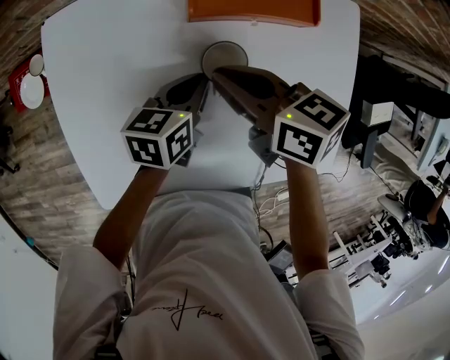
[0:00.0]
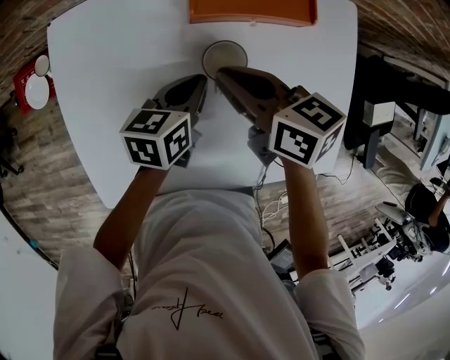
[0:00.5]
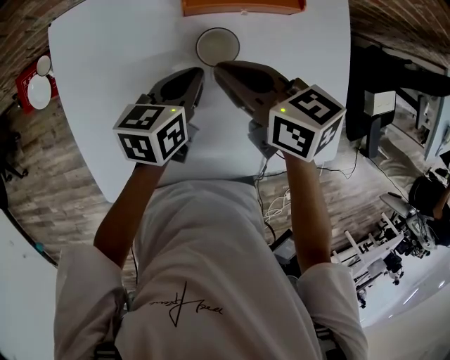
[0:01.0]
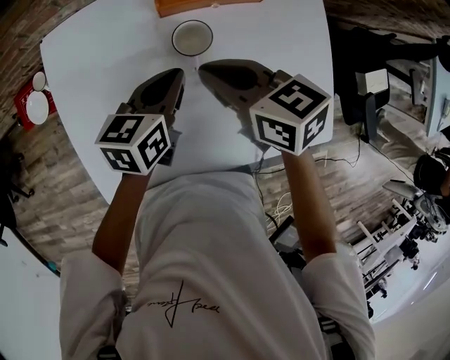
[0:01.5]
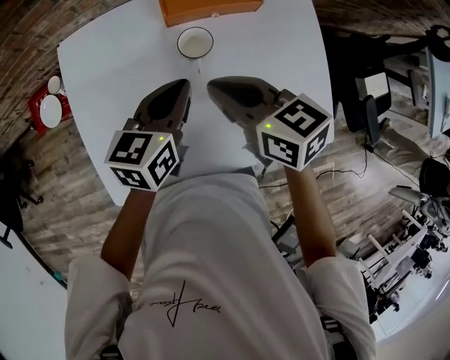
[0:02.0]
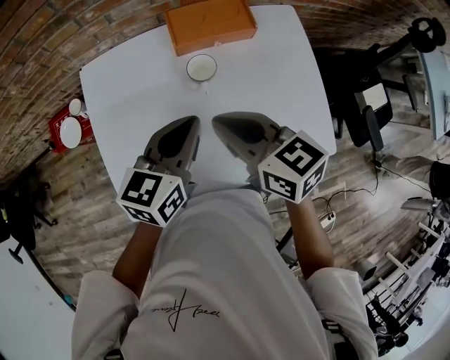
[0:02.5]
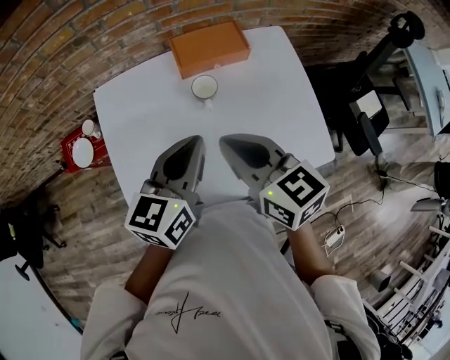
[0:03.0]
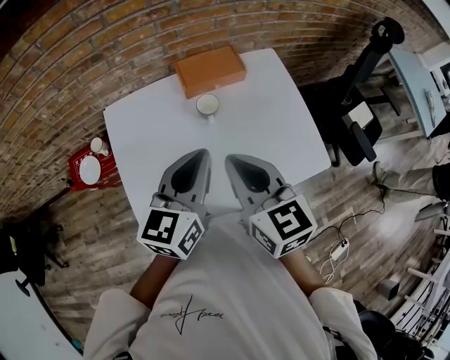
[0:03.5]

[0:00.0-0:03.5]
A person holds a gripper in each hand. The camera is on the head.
0:00.0 to 0:02.0: The right gripper goes about 10 cm backward and upward. Meanwhile the left gripper moves upward and backward, roughly 15 cm.
0:02.0 to 0:03.5: The two grippers go approximately 15 cm upward and backward. The right gripper rotates approximately 30 degrees.

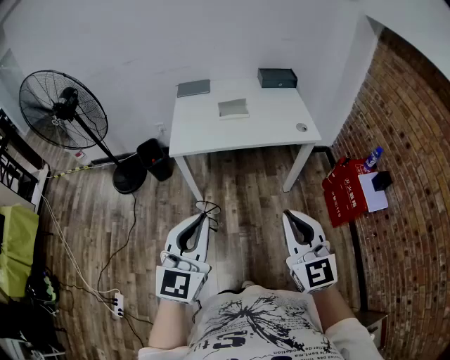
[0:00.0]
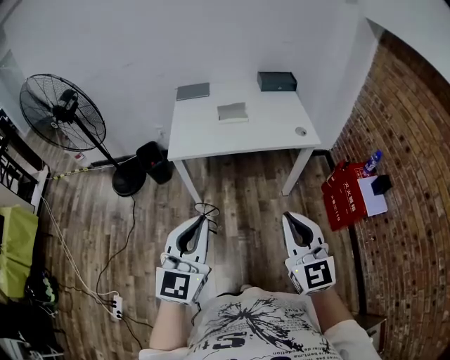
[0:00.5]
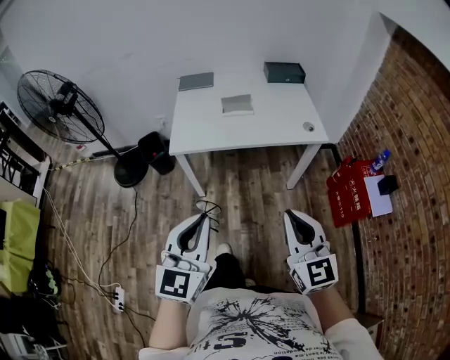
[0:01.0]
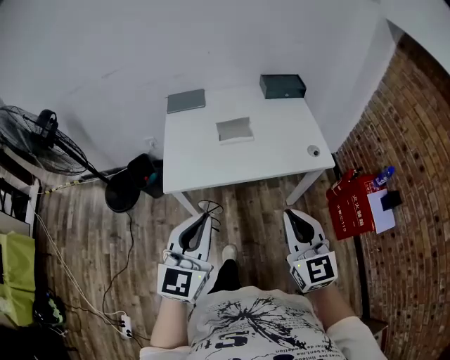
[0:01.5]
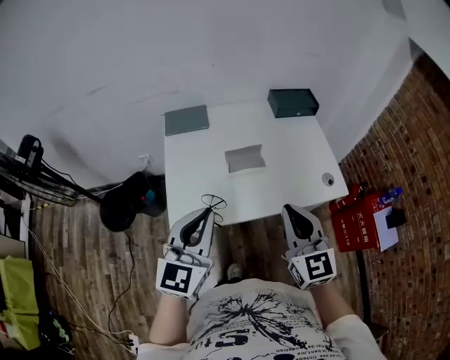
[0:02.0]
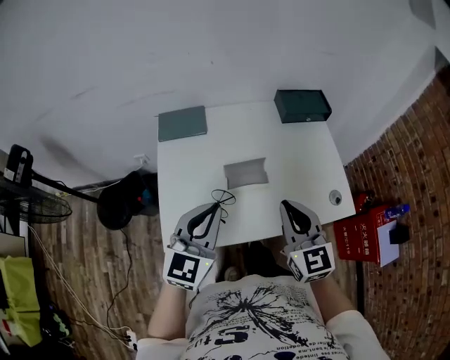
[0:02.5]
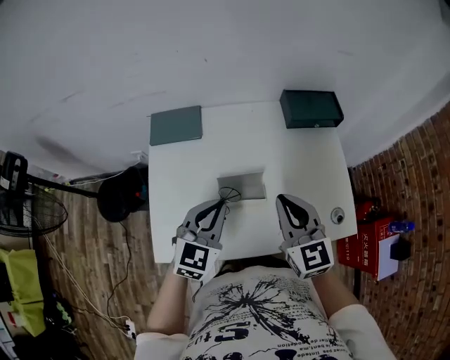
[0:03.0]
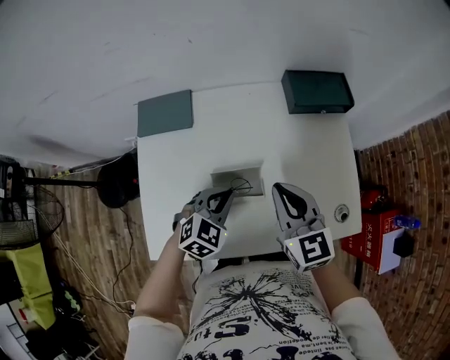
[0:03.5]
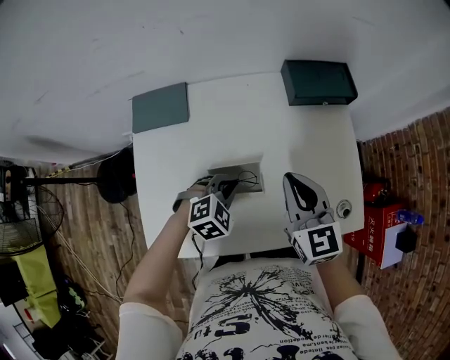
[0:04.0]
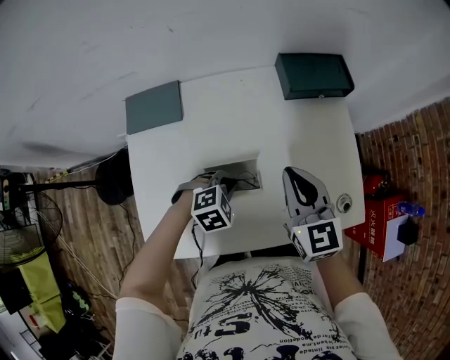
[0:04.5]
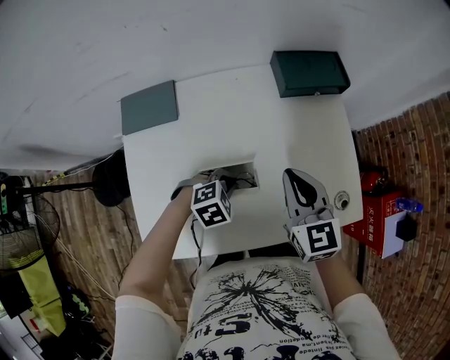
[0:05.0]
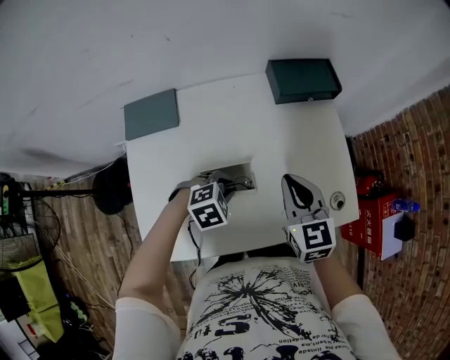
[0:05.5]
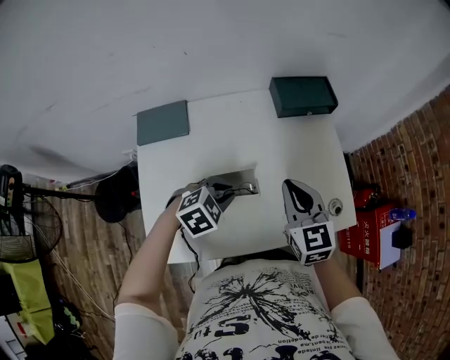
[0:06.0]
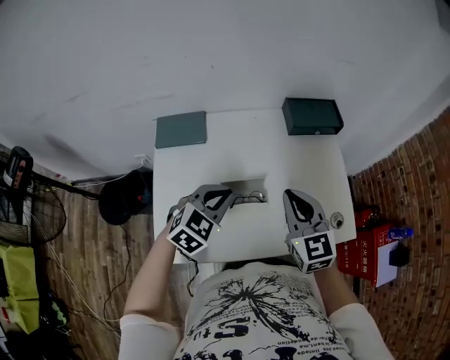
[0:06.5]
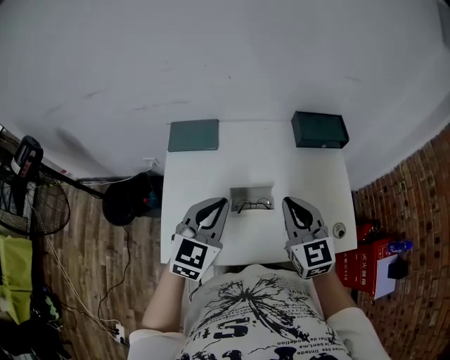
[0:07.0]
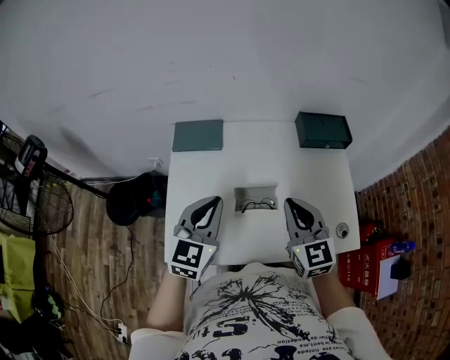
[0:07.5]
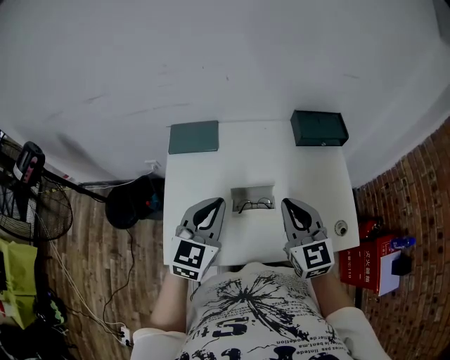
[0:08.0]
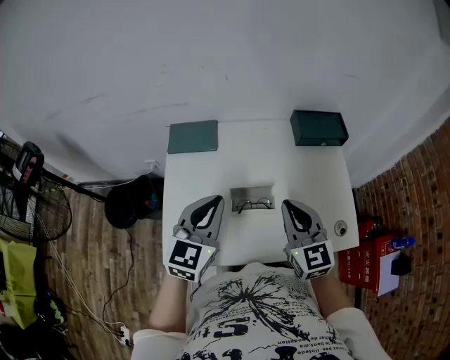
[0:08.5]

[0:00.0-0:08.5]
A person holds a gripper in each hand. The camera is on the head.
0:00.0 to 0:02.0: Both grippers are carried forward, approximately 40 cm.
0:02.0 to 0:04.0: The left gripper goes some 40 cm forward and downward, and points its fingers approximately 50 degrees further downward. Meanwhile the right gripper heads forward, covering about 30 cm.
0:04.0 to 0:06.5: The left gripper is displaced upward by some 15 cm, and turns by approximately 20 degrees. The right gripper travels backward and upward by some 10 cm.
0:06.5 to 0:08.5: The left gripper is displaced upward and to the left by approximately 10 cm, and rotates approximately 30 degrees.

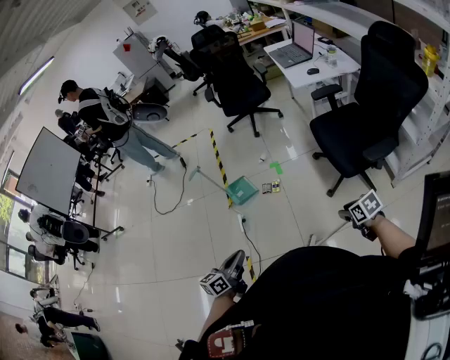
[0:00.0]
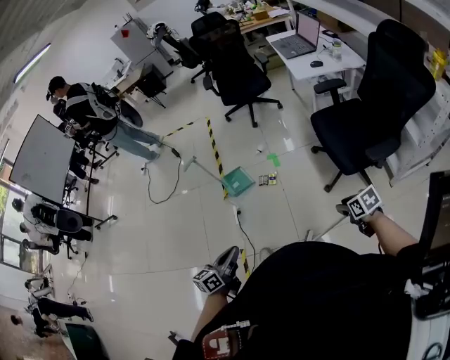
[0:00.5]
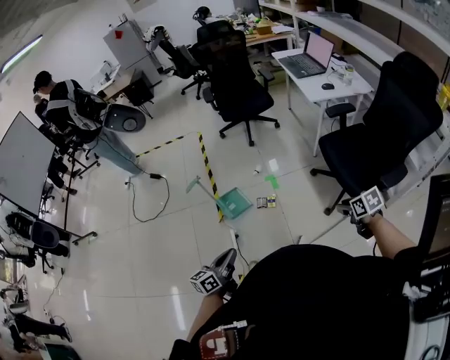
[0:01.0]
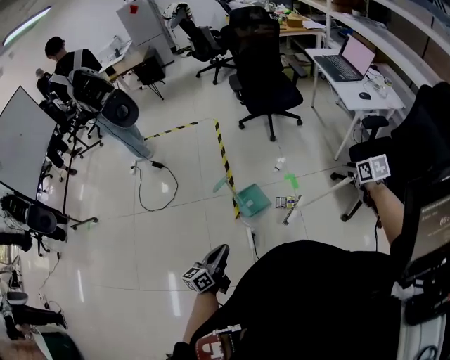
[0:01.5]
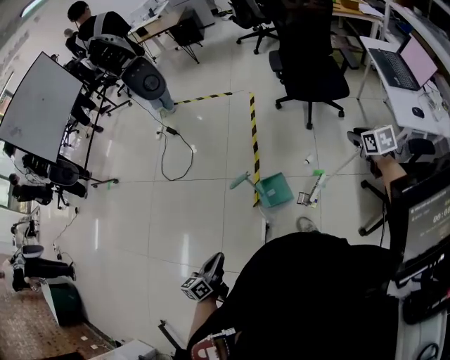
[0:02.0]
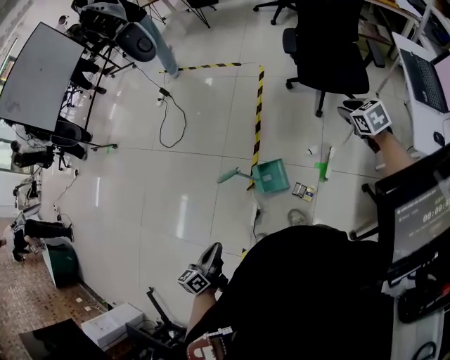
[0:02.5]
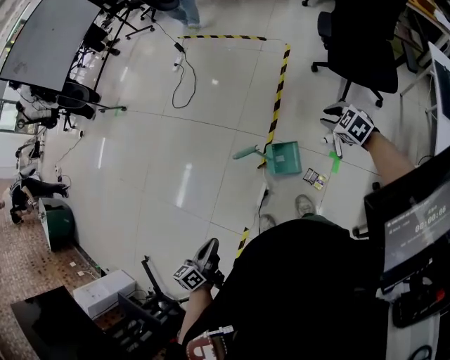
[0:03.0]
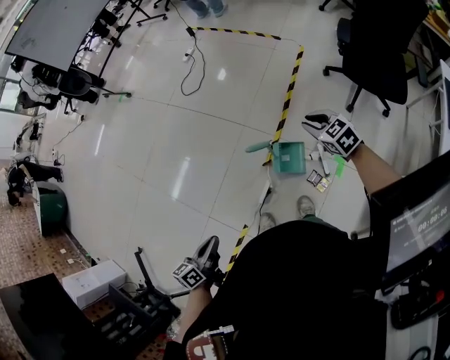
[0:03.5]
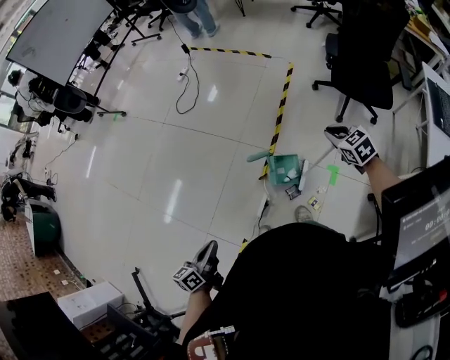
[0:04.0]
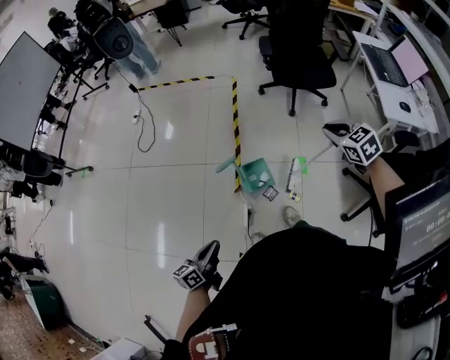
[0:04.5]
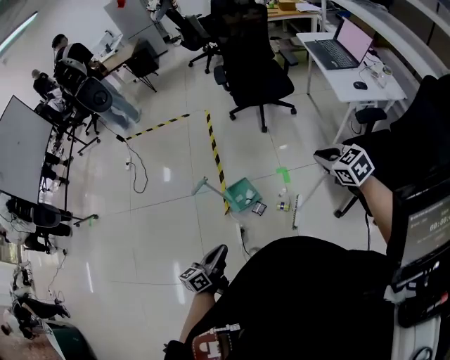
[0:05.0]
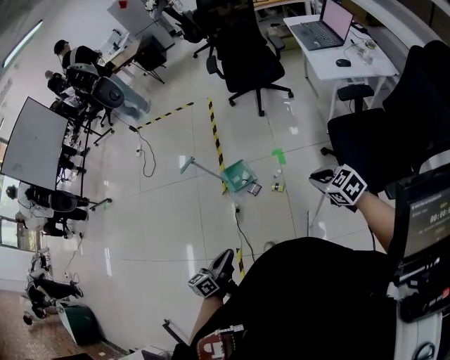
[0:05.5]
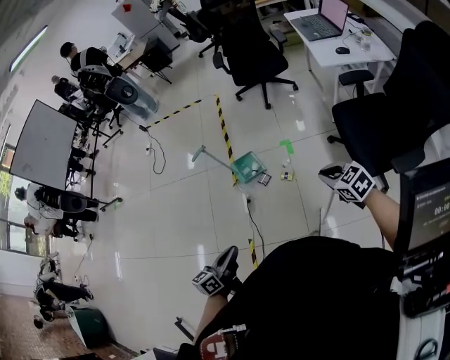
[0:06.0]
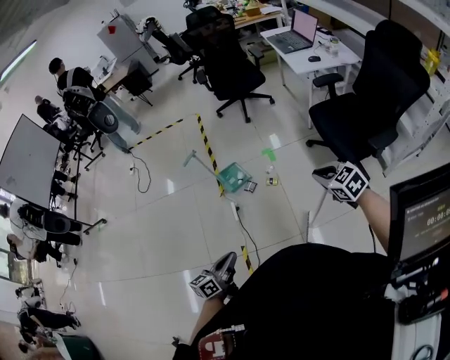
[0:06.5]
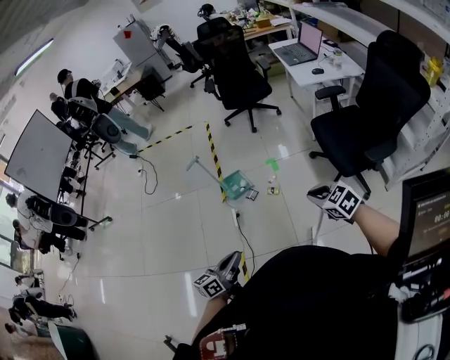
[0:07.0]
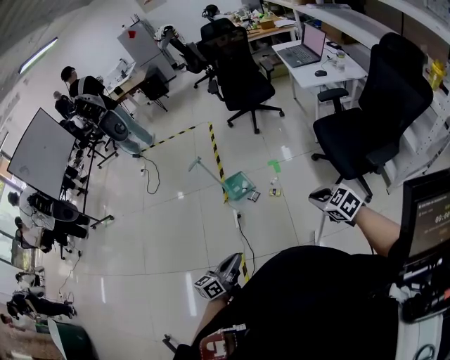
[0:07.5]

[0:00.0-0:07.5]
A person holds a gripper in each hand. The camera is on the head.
0:00.0 to 0:02.0: Both grippers are carried forward and to the left, approximately 60 cm. The left gripper rotates approximately 20 degrees.
0:02.0 to 0:04.0: The right gripper shifts by about 25 cm, swivels approximately 40 degrees, and closes up.
0:04.0 to 0:05.5: The right gripper moves about 60 cm, and changes its angle by some 20 degrees. The left gripper ends up approximately 35 cm from where it was, and turns by some 30 degrees.
0:05.5 to 0:07.5: The two grippers go approximately 20 cm backward.

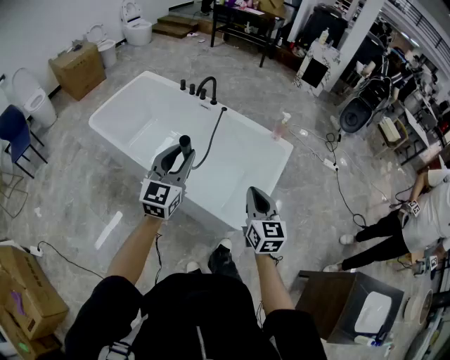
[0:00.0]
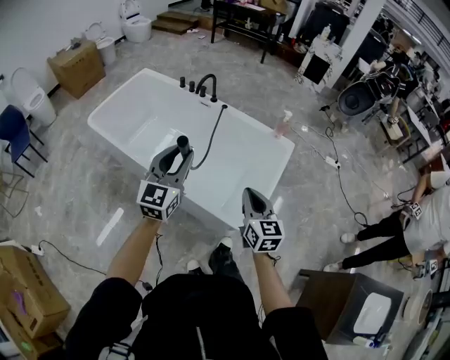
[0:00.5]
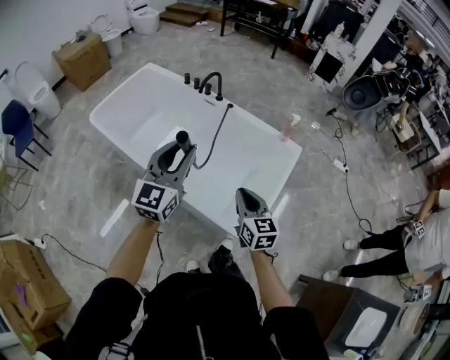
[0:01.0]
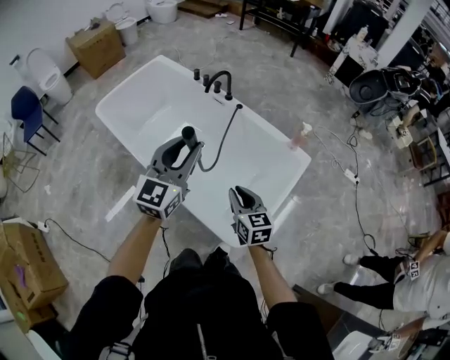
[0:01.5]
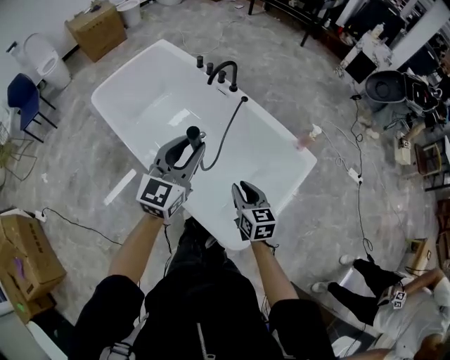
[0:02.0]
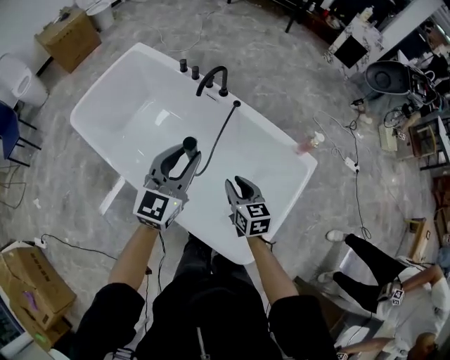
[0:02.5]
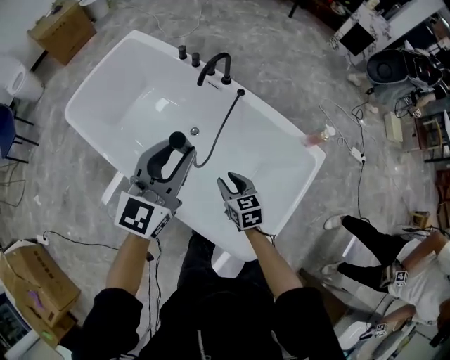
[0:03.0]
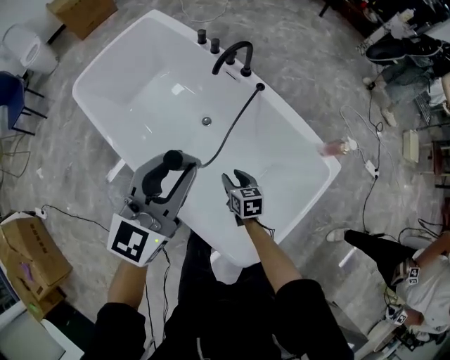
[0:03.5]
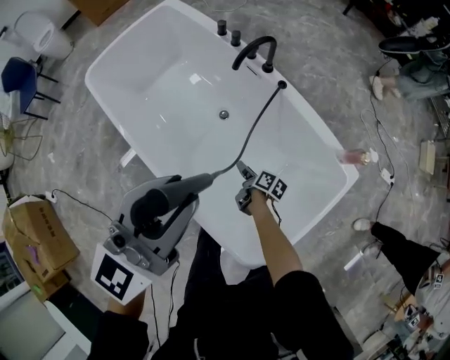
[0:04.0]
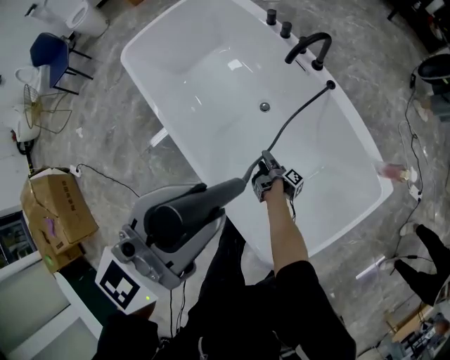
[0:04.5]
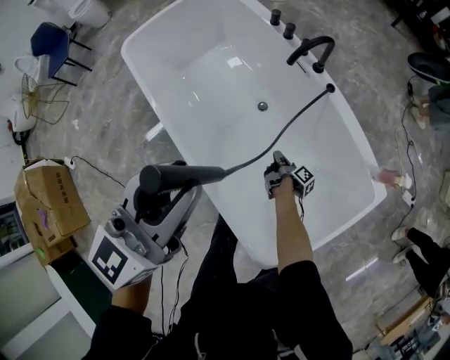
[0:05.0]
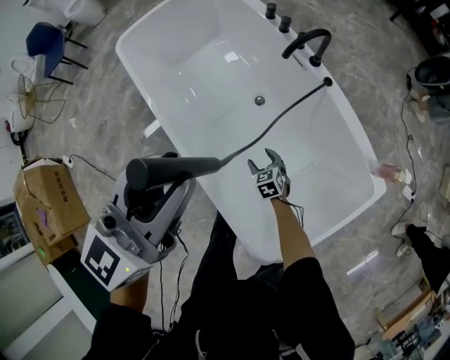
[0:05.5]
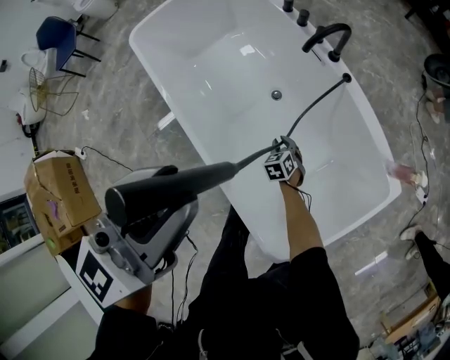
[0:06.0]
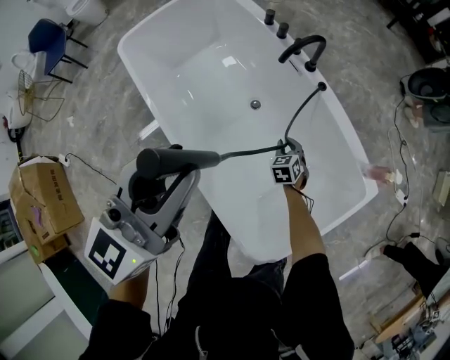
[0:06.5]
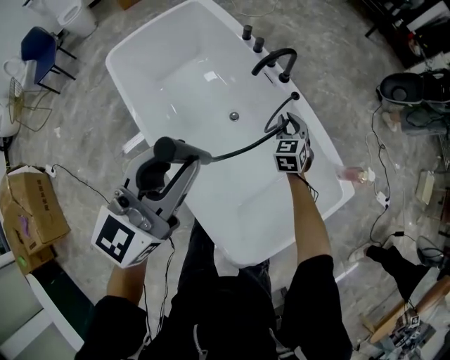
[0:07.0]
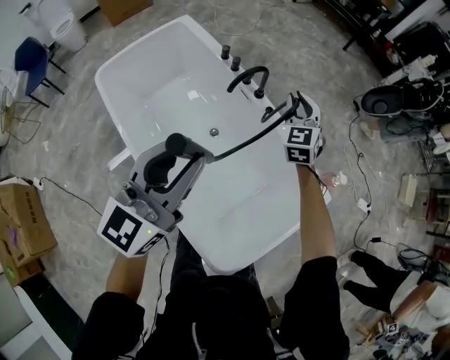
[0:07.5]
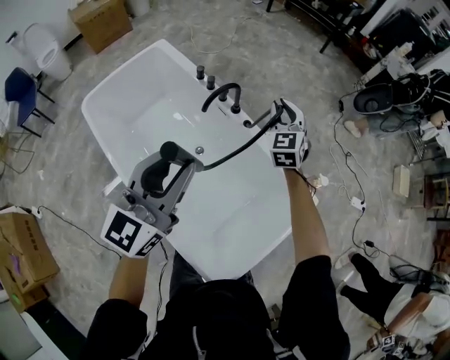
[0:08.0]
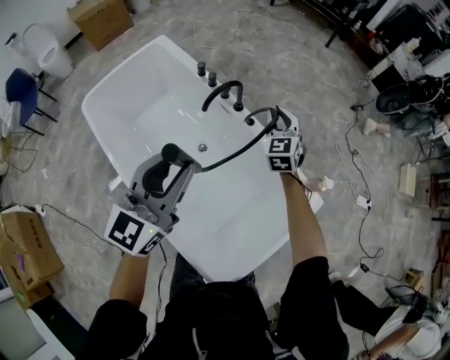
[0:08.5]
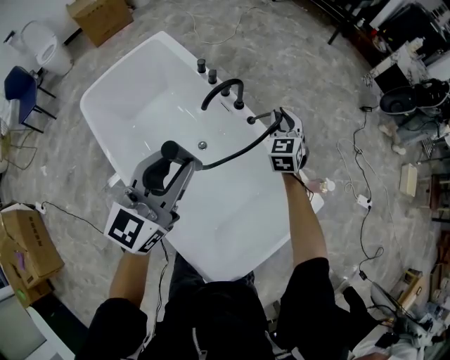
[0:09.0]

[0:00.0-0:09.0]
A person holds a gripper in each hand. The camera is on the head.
0:00.0 to 0:02.0: The right gripper is displaced forward and downward by roughly 25 cm, and turns by roughly 30 degrees, while the left gripper goes approximately 15 cm forward.
0:02.0 to 0:04.5: The right gripper heads downward and forward, covering about 40 cm, twists some 100 degrees clockwise, seen from behind, and opens, while the left gripper is displaced to the left and forward by approximately 10 cm.
0:04.5 to 0:07.0: The right gripper is displaced upward, forward and to the right by about 35 cm, rolls counterclockwise, seen from behind, by about 130 degrees, and closes.
0:07.0 to 0:09.0: The right gripper moves upward, forward and to the right, some 20 cm; the left gripper shifts roughly 15 cm forward and to the right.
